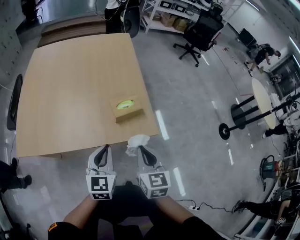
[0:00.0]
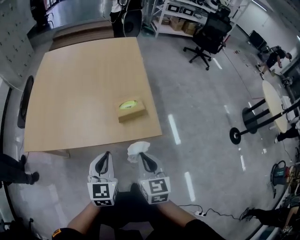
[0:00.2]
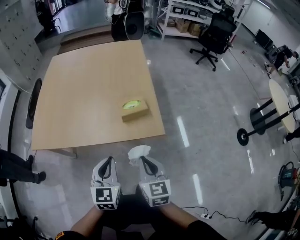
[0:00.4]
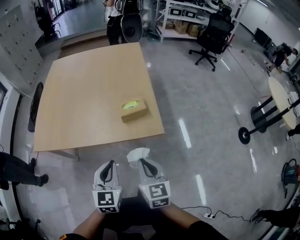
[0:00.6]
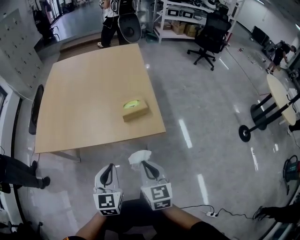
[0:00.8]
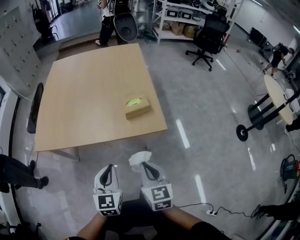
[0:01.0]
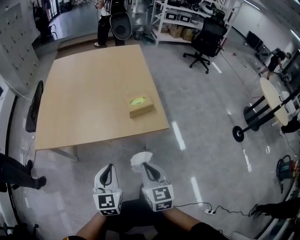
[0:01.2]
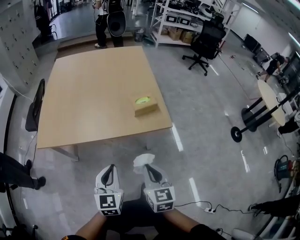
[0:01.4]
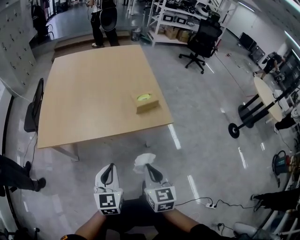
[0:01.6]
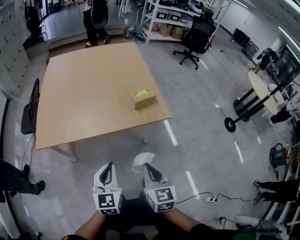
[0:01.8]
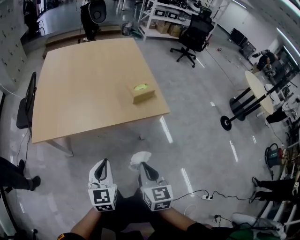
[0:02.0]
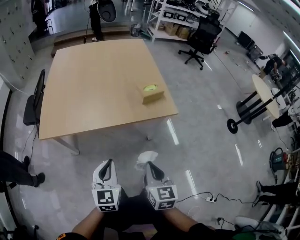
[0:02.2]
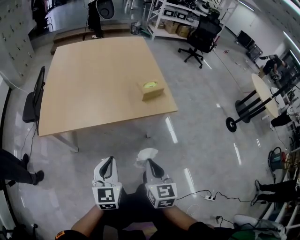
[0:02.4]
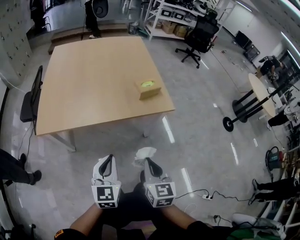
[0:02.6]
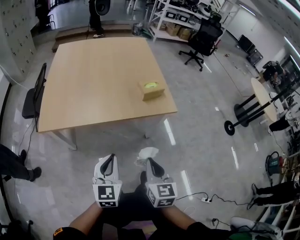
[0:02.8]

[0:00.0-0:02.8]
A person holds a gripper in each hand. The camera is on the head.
0:00.0 to 0:01.4: The two grippers go about 20 cm backward and to the left.
0:01.4 to 0:02.8: The right gripper travels backward by approximately 5 cm. Meanwhile the left gripper heads to the left, covering approximately 5 cm.

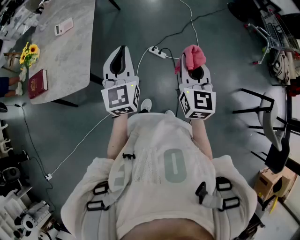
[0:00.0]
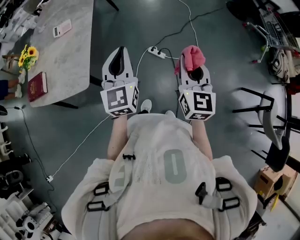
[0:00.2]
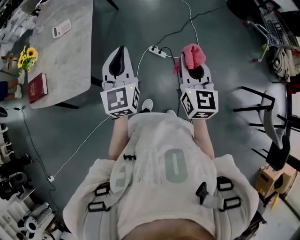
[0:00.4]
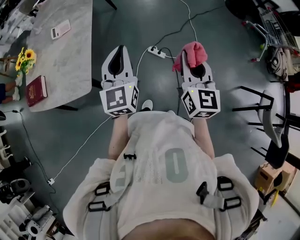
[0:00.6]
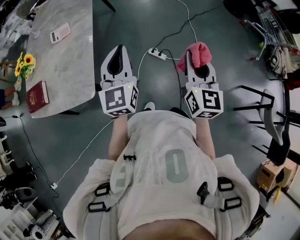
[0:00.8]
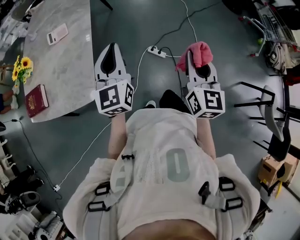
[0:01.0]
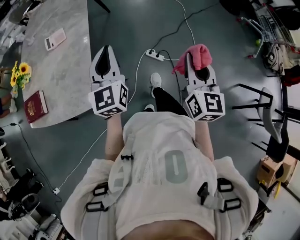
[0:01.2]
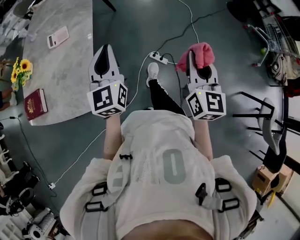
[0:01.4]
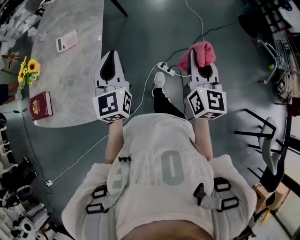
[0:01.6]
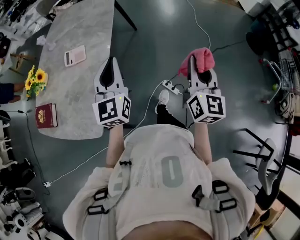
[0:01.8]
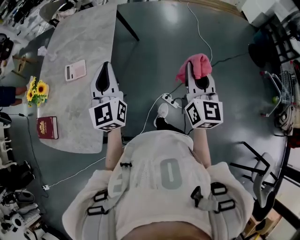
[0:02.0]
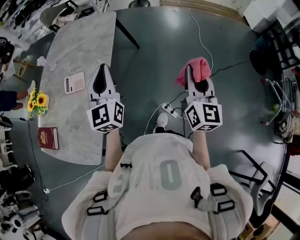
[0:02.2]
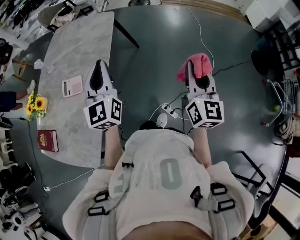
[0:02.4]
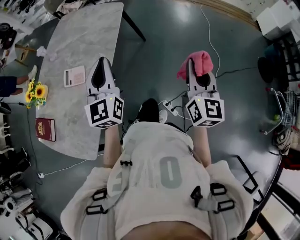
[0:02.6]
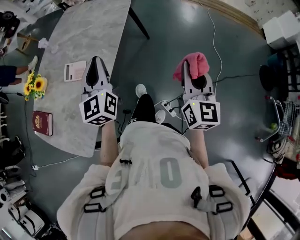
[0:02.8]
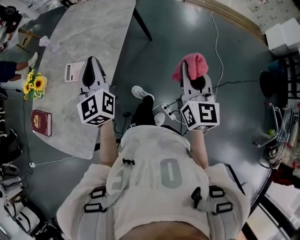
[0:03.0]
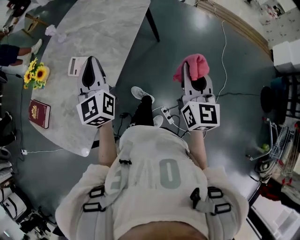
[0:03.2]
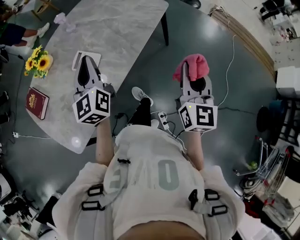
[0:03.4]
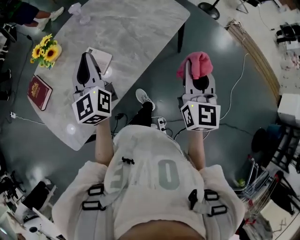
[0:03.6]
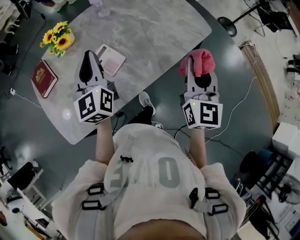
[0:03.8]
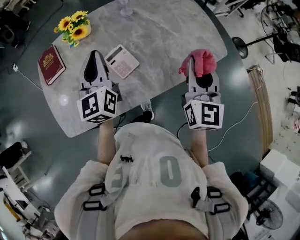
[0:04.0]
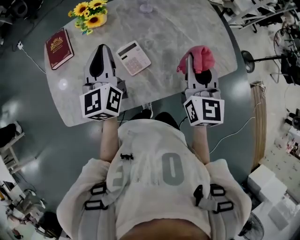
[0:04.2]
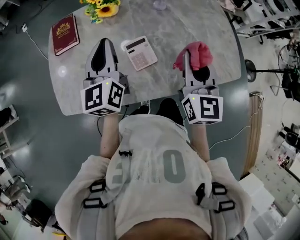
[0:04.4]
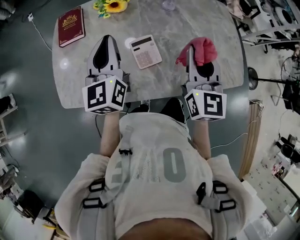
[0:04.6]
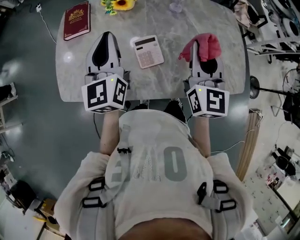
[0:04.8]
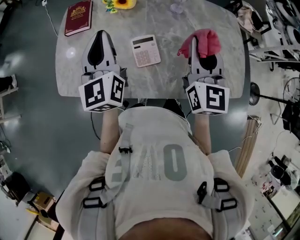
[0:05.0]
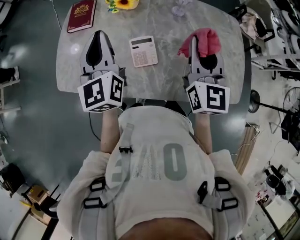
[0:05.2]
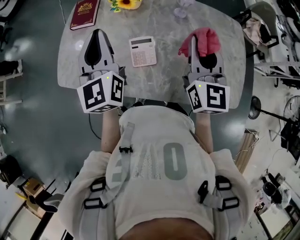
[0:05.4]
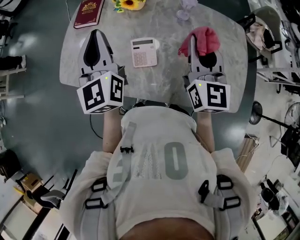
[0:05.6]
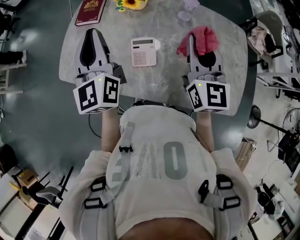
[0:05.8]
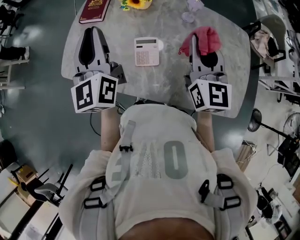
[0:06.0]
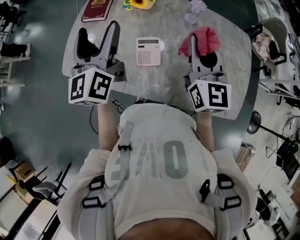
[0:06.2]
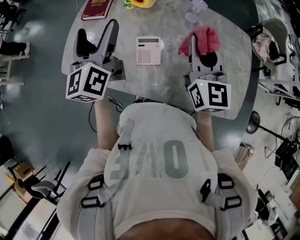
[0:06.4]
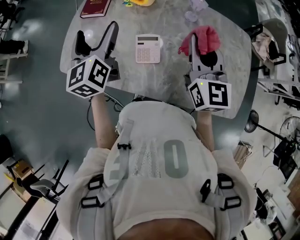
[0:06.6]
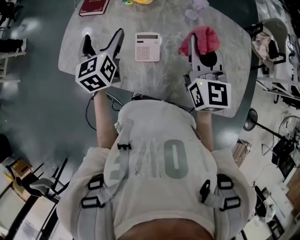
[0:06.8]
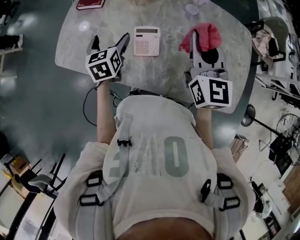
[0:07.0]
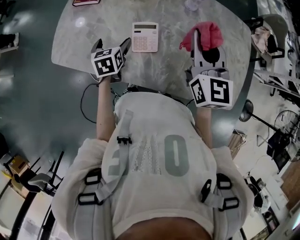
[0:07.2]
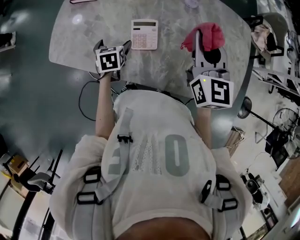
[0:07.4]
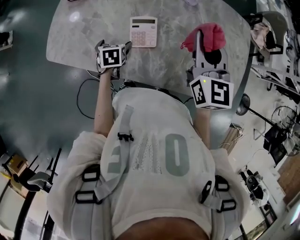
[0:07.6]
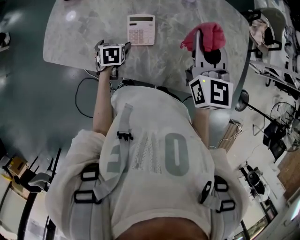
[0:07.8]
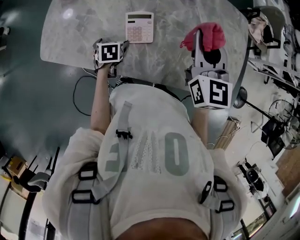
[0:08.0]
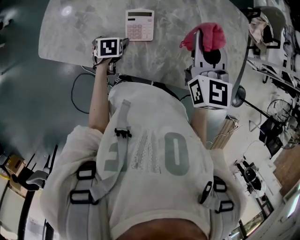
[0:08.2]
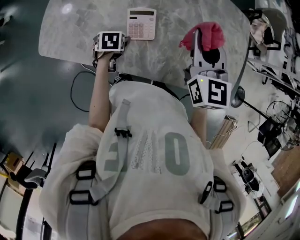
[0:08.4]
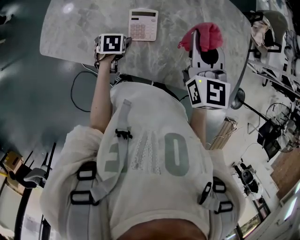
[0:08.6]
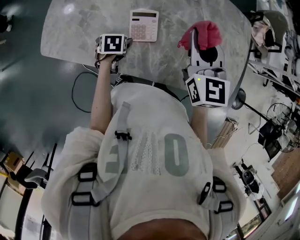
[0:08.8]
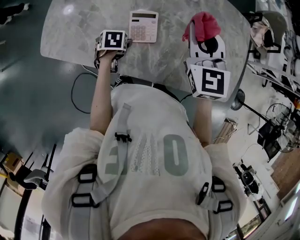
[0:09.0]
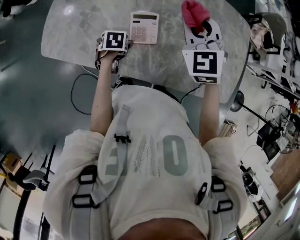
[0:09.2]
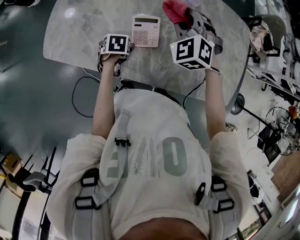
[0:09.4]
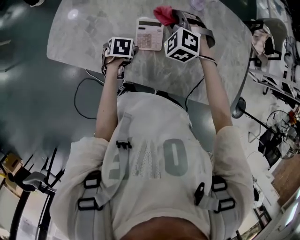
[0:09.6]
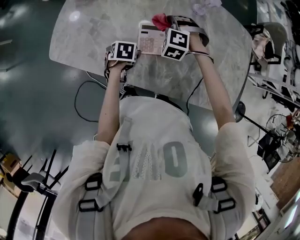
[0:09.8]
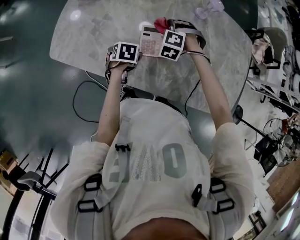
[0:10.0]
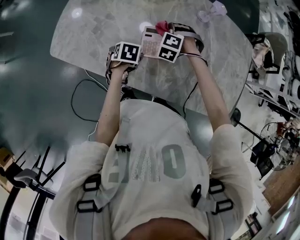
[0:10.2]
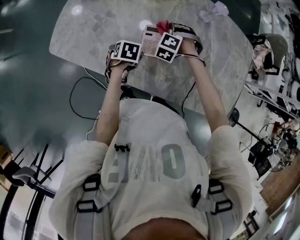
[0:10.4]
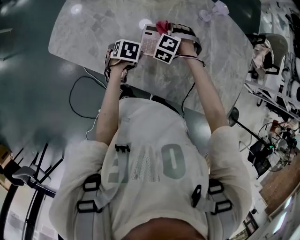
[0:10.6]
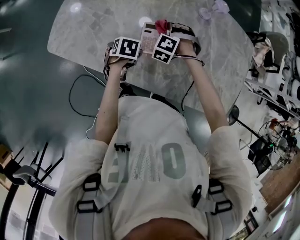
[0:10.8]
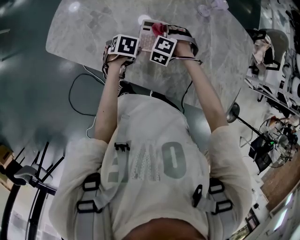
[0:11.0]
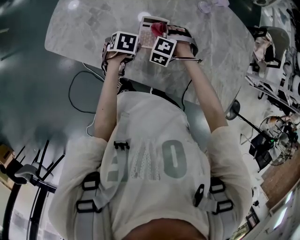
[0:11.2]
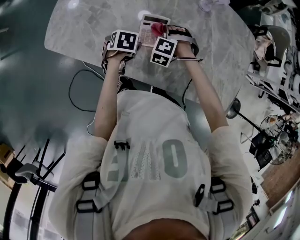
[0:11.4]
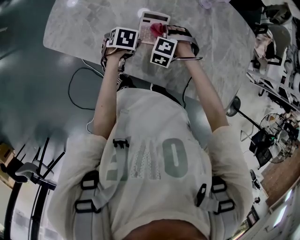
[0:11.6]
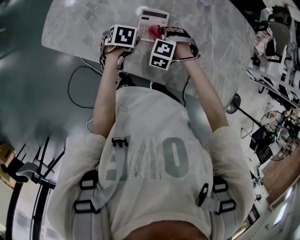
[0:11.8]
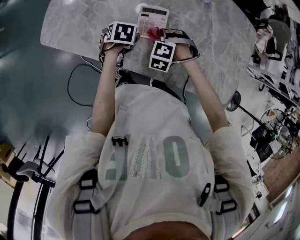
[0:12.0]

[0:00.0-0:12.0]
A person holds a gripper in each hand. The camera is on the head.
0:00.0 to 0:01.6: The left gripper shifts roughly 25 cm forward and to the left; the right gripper is displaced forward by roughly 25 cm.
0:01.6 to 0:03.0: The right gripper shifts by some 35 cm, and turns by roughly 20 degrees. The left gripper moves about 30 cm, and rotates about 30 degrees.
0:03.0 to 0:04.4: The left gripper moves approximately 30 cm, and rotates about 50 degrees, while the right gripper ends up roughly 50 cm from where it was, and swivels about 60 degrees.
0:04.4 to 0:06.0: The left gripper heads upward, covering approximately 10 cm, and rotates about 30 degrees, while the right gripper ends up some 10 cm from where it was, and turns by about 30 degrees.
0:06.0 to 0:07.6: The left gripper heads downward, covering approximately 40 cm, tips its fingers downward by some 70 degrees, and opens up.
0:07.6 to 0:09.0: There are only small adjustments of the grippers.
0:09.0 to 0:10.4: The right gripper heads downward, covering roughly 25 cm, and points its fingers approximately 40 degrees further downward.
0:10.4 to 0:12.0: The right gripper goes about 10 cm backward.

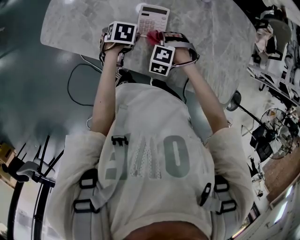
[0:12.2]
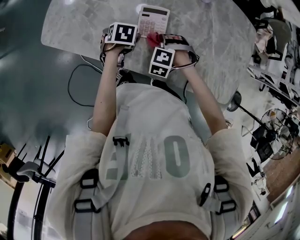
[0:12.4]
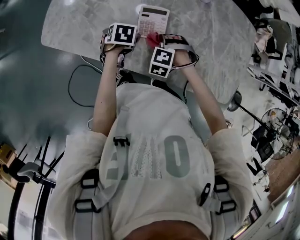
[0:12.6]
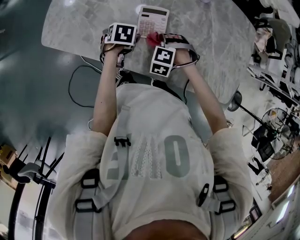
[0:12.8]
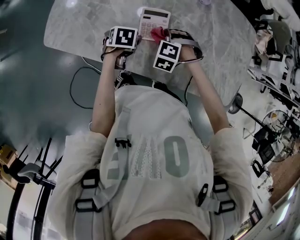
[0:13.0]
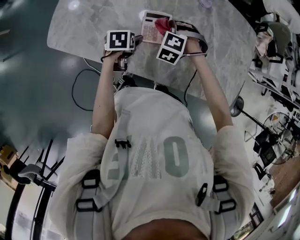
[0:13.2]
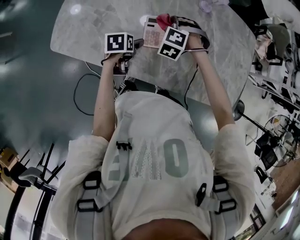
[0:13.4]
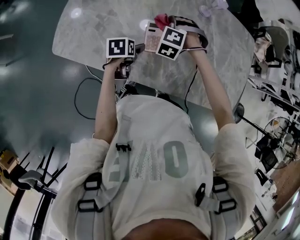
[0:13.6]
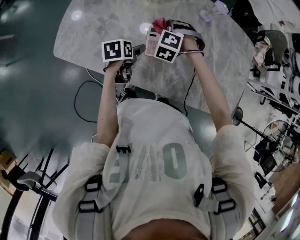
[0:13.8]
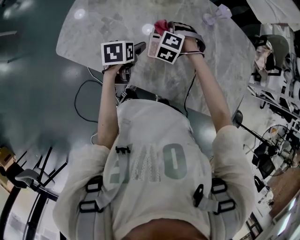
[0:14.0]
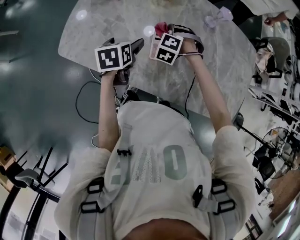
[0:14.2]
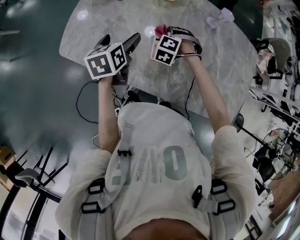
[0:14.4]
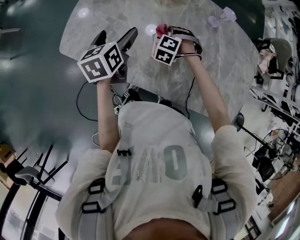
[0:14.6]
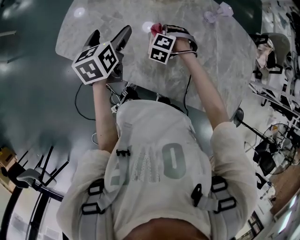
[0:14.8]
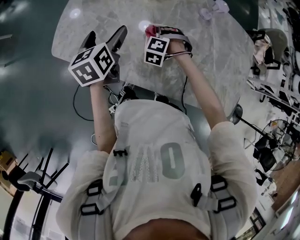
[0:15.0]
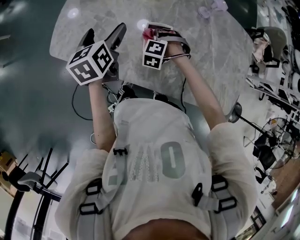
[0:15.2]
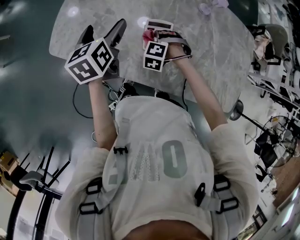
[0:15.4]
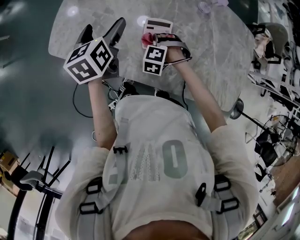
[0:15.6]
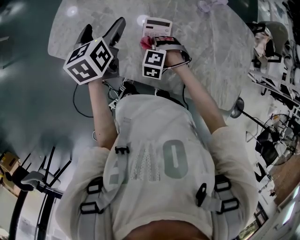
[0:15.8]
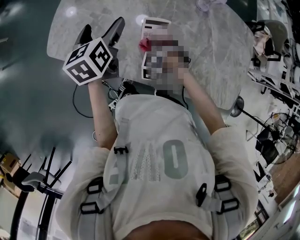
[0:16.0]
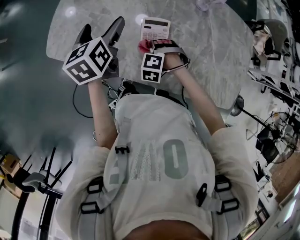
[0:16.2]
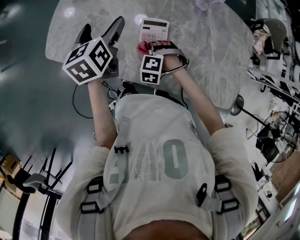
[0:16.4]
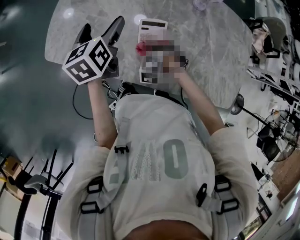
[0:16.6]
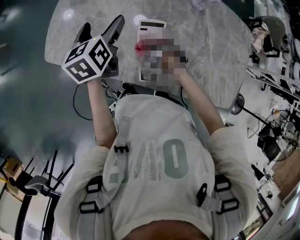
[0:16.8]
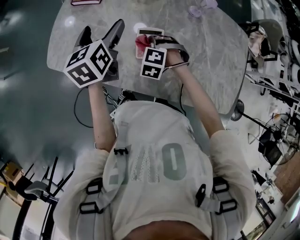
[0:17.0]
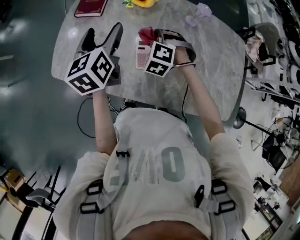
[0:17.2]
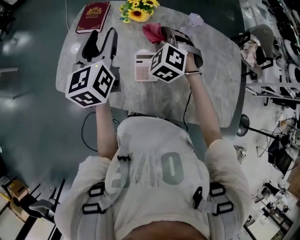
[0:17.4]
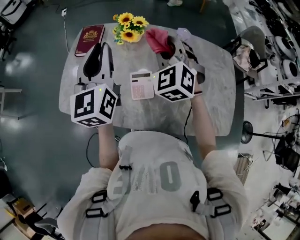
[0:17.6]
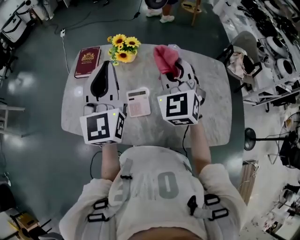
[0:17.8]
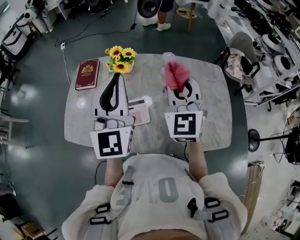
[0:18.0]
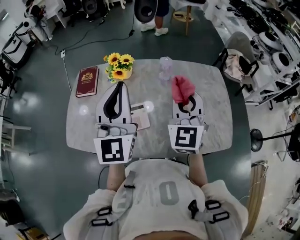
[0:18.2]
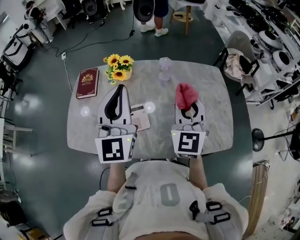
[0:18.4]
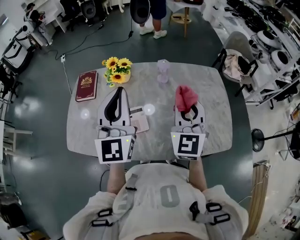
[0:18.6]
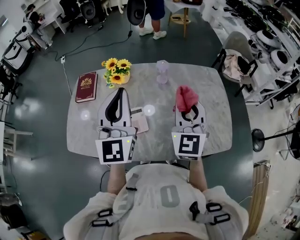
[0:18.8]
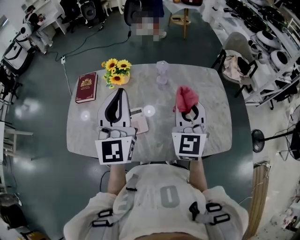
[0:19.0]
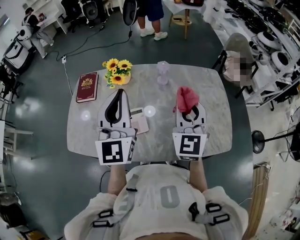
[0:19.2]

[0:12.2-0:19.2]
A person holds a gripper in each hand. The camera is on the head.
0:12.2 to 0:13.6: The right gripper goes about 15 cm forward, upward and to the left.
0:13.6 to 0:15.0: The left gripper goes roughly 20 cm upward and to the left, and swivels about 40 degrees. Meanwhile the right gripper moves downward, approximately 5 cm.
0:15.0 to 0:16.4: The right gripper travels backward by roughly 10 cm.
0:16.4 to 0:17.8: The right gripper is displaced upward by some 40 cm, and angles its fingers upward, by approximately 60 degrees. The left gripper goes approximately 30 cm upward and to the right, tips its fingers upward by roughly 40 degrees, and closes up.
0:17.8 to 0:19.2: The left gripper heads to the right, covering roughly 10 cm; the right gripper heads to the right and backward, covering approximately 15 cm, and swivels some 20 degrees.

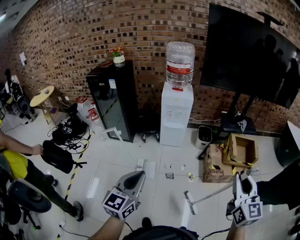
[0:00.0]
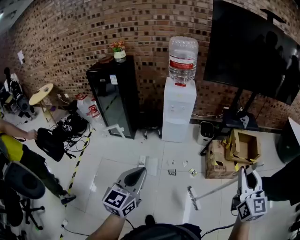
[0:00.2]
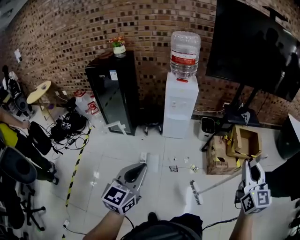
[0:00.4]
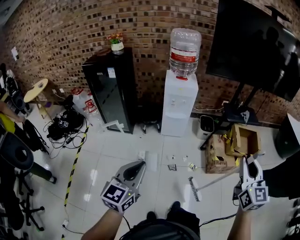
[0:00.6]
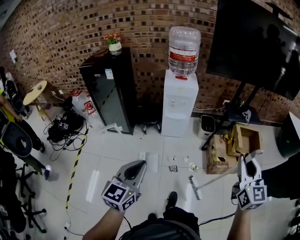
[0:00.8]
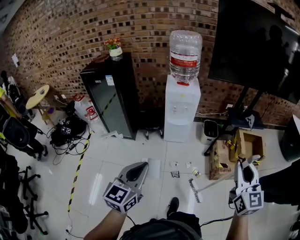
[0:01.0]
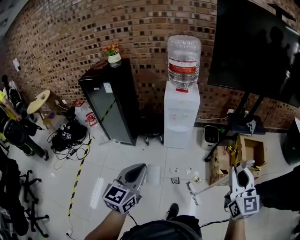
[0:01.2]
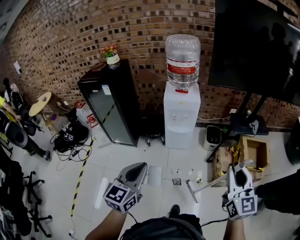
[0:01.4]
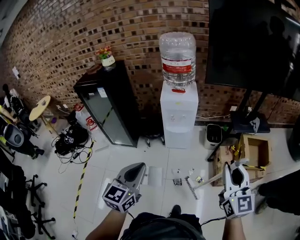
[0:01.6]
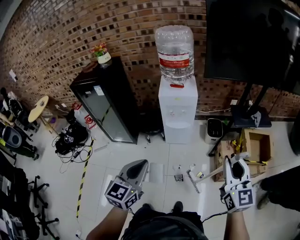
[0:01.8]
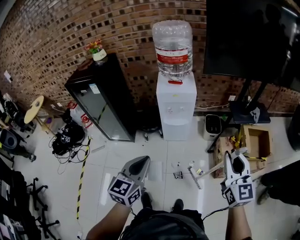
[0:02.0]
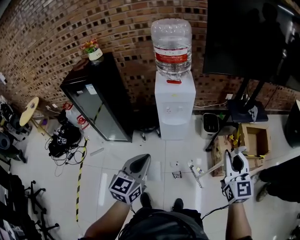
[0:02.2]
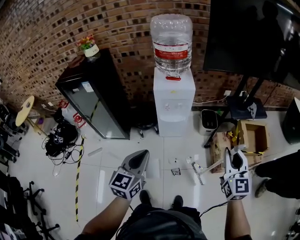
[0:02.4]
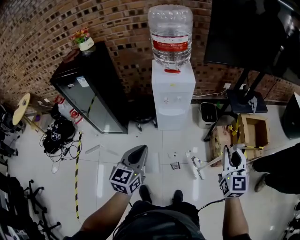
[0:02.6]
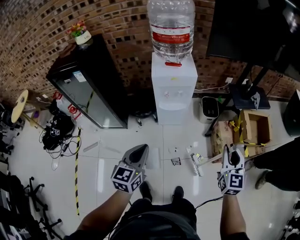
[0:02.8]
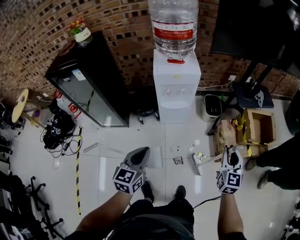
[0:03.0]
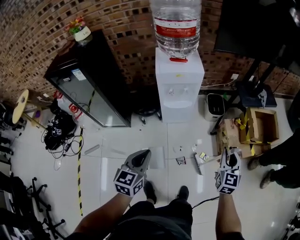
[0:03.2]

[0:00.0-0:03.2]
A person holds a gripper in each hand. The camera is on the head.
0:00.0 to 0:01.6: The grippers both shift forward by roughly 30 cm.
0:01.6 to 0:03.2: The right gripper shifts some 30 cm downward and forward, and changes its angle by approximately 30 degrees. The left gripper is displaced downward, forward and to the left by about 30 cm.
